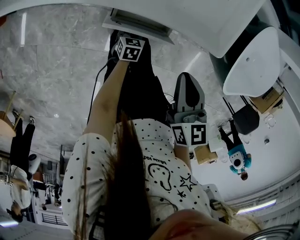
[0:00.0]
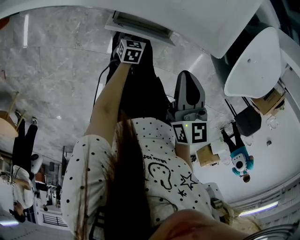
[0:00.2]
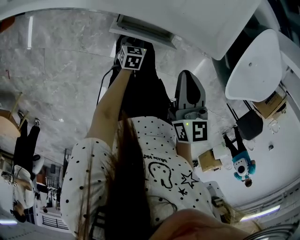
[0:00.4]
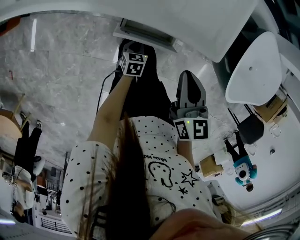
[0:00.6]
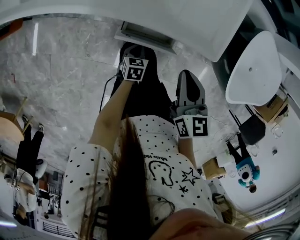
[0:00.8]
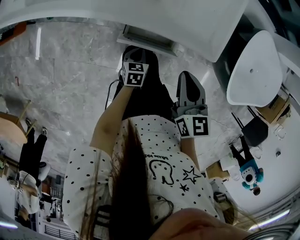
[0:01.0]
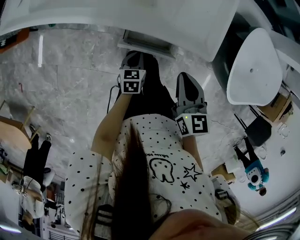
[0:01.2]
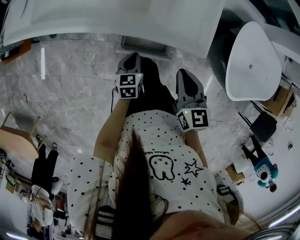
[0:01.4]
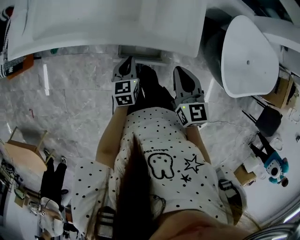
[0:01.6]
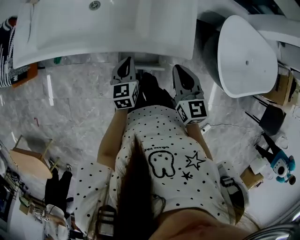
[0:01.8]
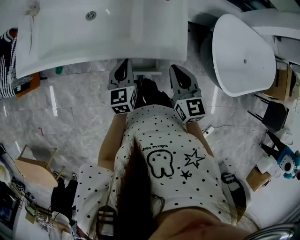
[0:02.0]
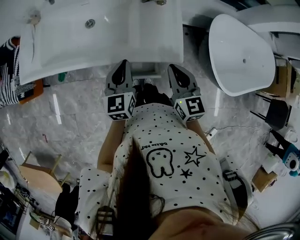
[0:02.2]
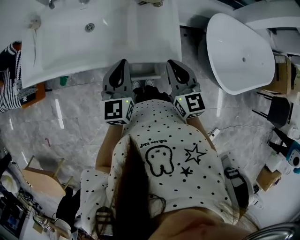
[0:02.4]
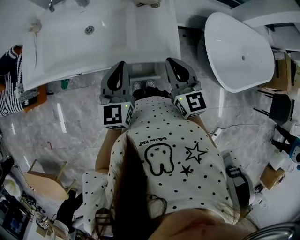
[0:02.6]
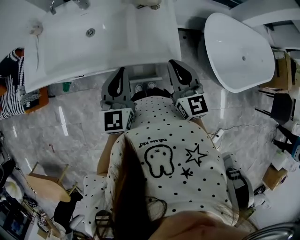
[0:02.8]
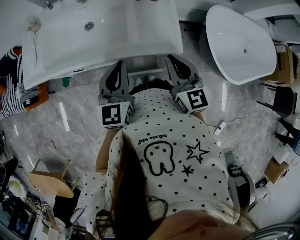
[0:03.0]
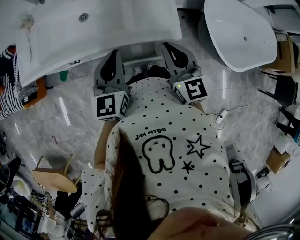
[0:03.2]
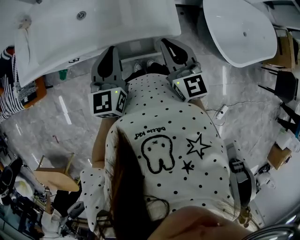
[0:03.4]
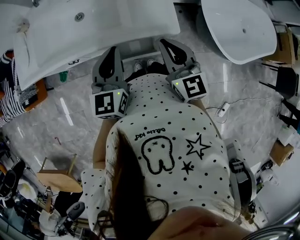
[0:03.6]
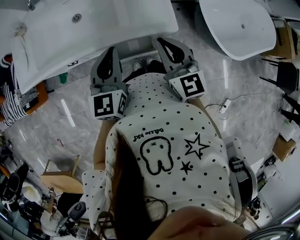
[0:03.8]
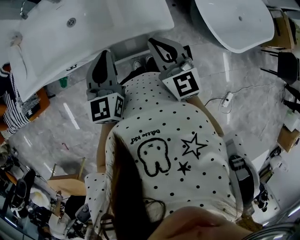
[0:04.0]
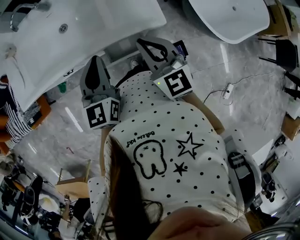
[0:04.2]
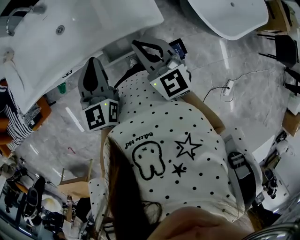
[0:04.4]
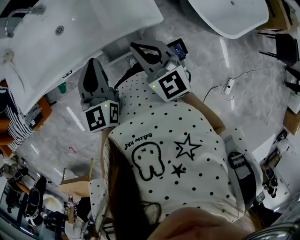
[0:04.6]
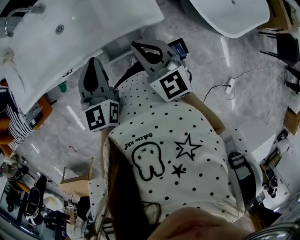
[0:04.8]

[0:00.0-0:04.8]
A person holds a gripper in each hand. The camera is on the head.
0:00.0 to 0:01.6: The left gripper is displaced upward by approximately 30 cm, swivels roughly 20 degrees, and closes up, while the right gripper goes approximately 10 cm upward.
0:01.6 to 0:03.2: The left gripper travels upward by about 25 cm, and changes its angle by roughly 30 degrees. Meanwhile the right gripper heads upward, covering roughly 10 cm.
0:03.2 to 0:04.8: The grippers stay close to where they were, moving slightly.

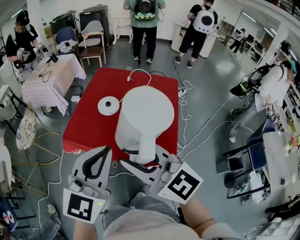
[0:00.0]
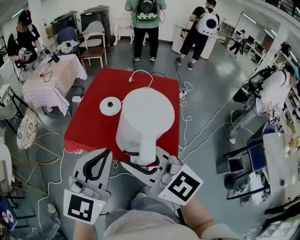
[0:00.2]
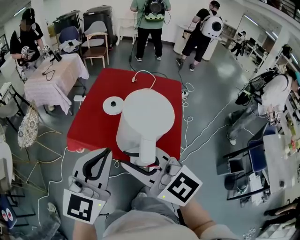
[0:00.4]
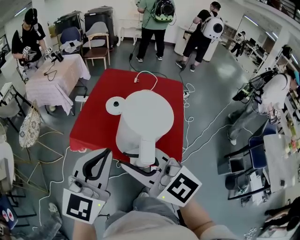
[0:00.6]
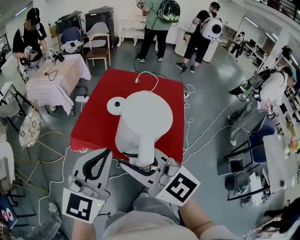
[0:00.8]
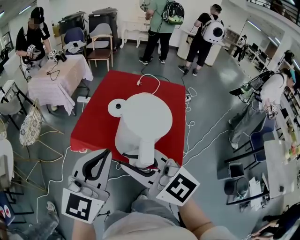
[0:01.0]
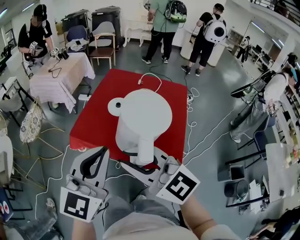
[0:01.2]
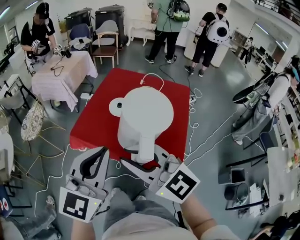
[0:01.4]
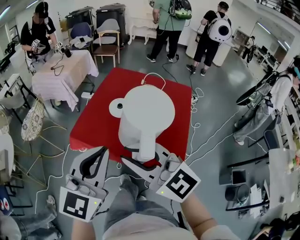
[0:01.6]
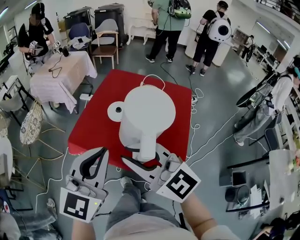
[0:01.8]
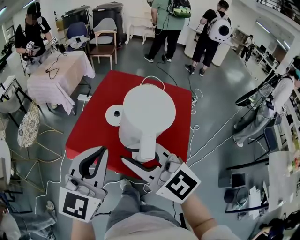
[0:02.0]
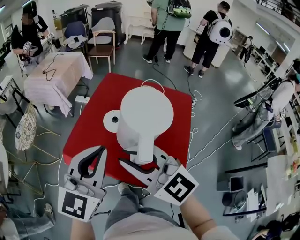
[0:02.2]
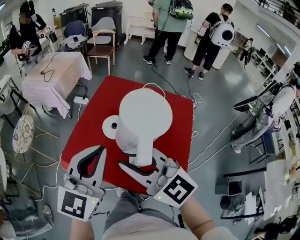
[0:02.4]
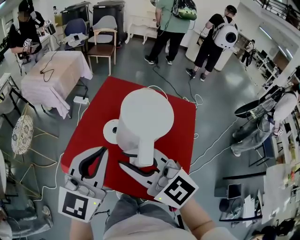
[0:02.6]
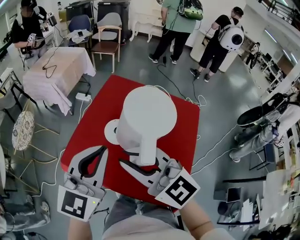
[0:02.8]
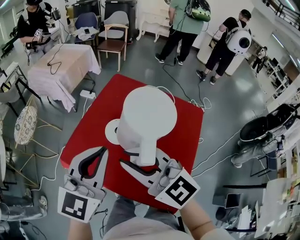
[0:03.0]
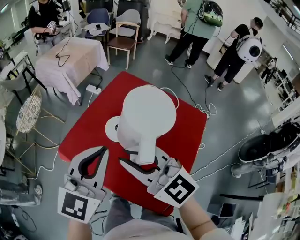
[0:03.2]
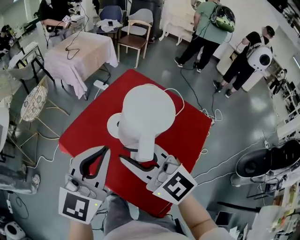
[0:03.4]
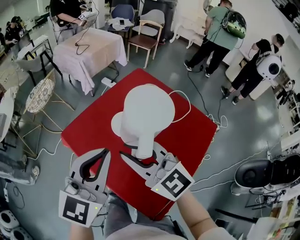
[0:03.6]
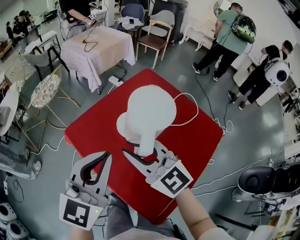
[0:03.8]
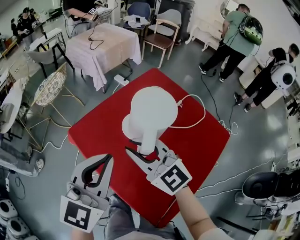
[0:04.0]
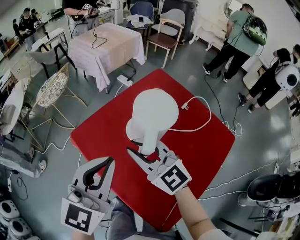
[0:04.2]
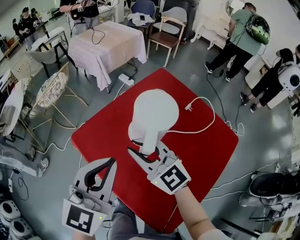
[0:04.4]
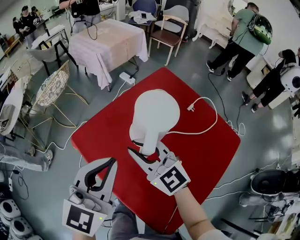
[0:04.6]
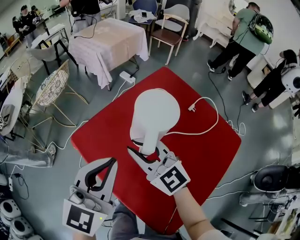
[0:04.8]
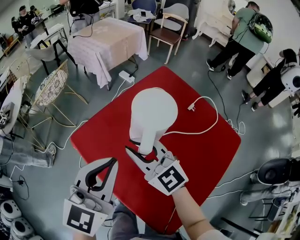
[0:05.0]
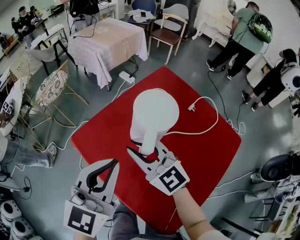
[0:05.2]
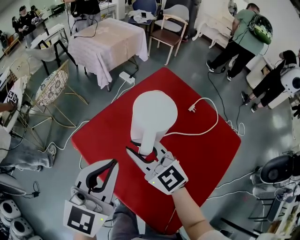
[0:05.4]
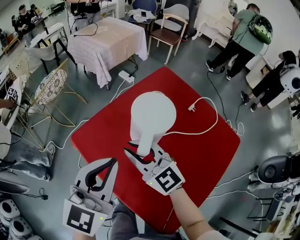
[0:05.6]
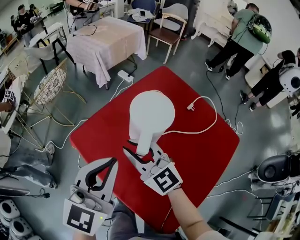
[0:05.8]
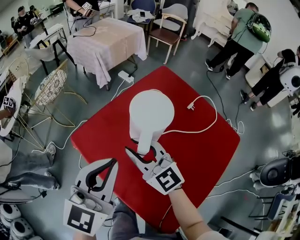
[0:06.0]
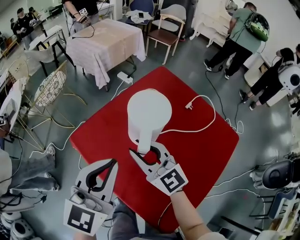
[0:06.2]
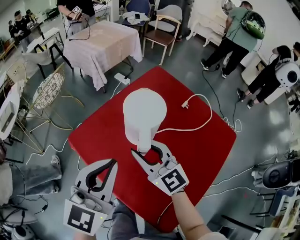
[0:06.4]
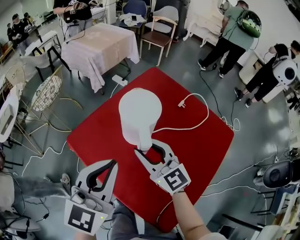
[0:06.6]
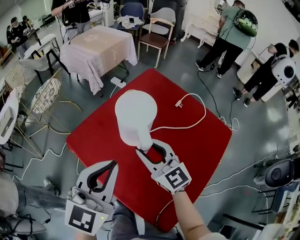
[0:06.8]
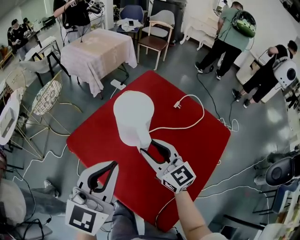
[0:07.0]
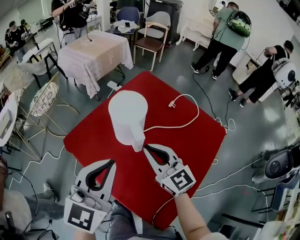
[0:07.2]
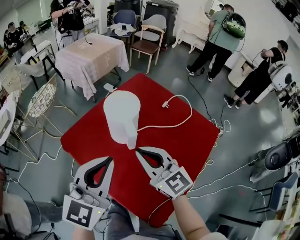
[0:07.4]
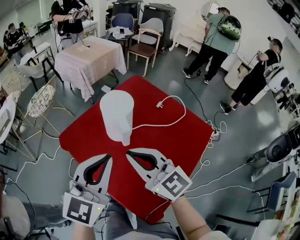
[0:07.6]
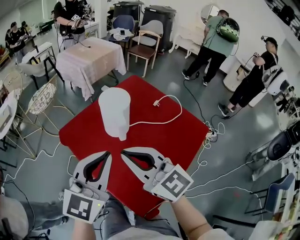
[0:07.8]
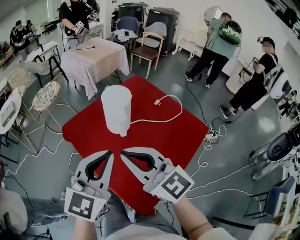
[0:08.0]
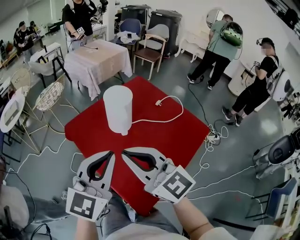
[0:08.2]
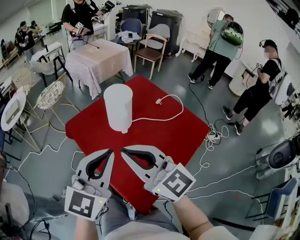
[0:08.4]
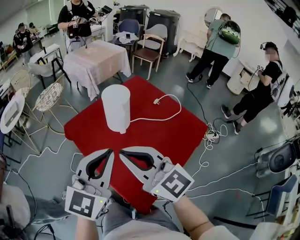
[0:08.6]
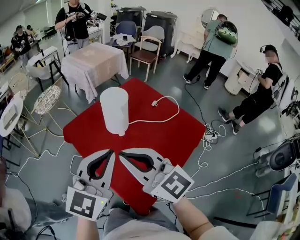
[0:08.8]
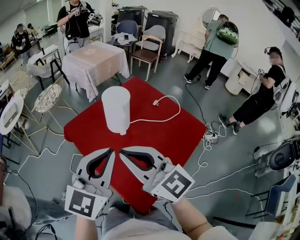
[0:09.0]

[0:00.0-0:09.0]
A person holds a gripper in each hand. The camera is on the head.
0:00.0 to 0:01.6: The grippers stay close to where they were, moving slightly.
0:01.6 to 0:03.0: The grippers both shift forward by approximately 20 cm.
0:03.0 to 0:04.4: The left gripper heads downward, covering approximately 5 cm; the right gripper shifts approximately 15 cm downward and forward.
0:04.4 to 0:06.0: The grippers make only small movements.
0:06.0 to 0:07.6: The right gripper moves backward, upward and to the right, about 20 cm, and opens, then closes once more; the left gripper shifts approximately 10 cm backward and to the right.
0:07.6 to 0:09.0: The right gripper goes roughly 10 cm backward and upward. Meanwhile the left gripper travels backward by about 5 cm.

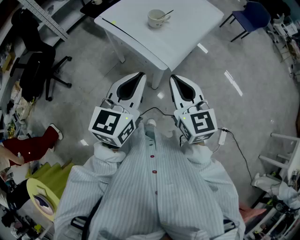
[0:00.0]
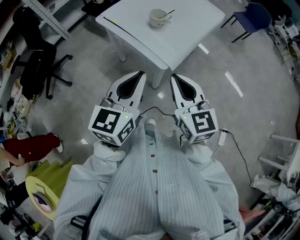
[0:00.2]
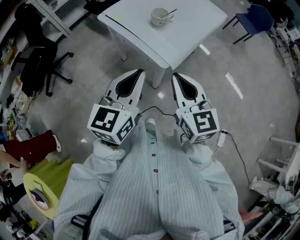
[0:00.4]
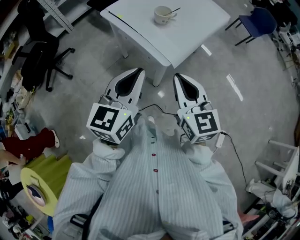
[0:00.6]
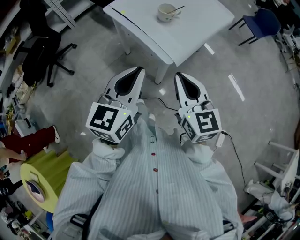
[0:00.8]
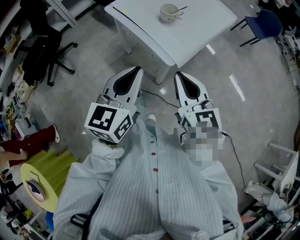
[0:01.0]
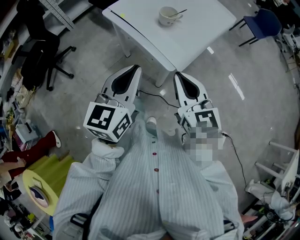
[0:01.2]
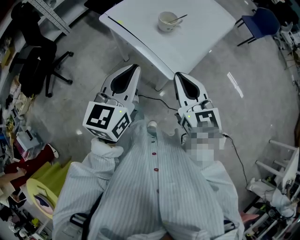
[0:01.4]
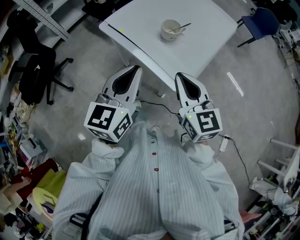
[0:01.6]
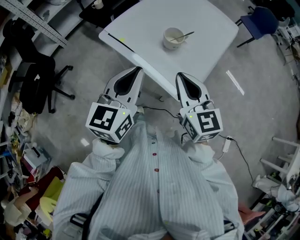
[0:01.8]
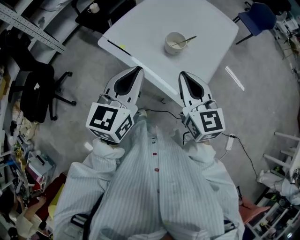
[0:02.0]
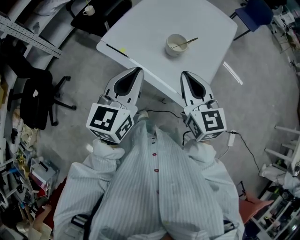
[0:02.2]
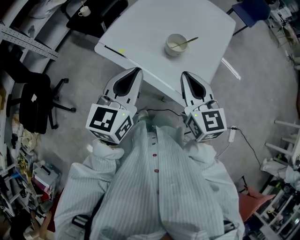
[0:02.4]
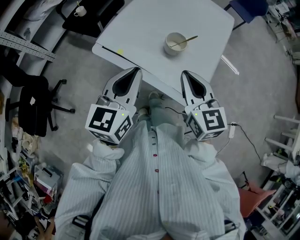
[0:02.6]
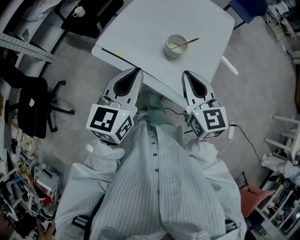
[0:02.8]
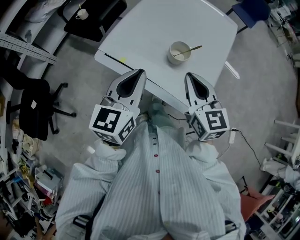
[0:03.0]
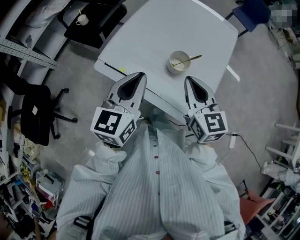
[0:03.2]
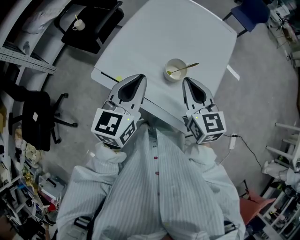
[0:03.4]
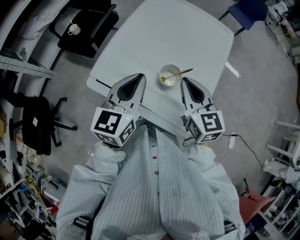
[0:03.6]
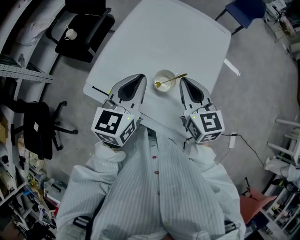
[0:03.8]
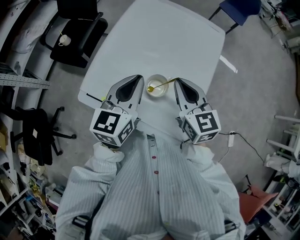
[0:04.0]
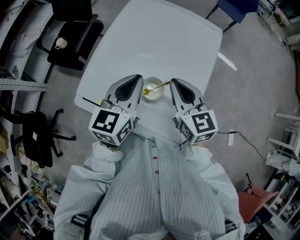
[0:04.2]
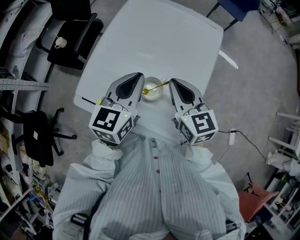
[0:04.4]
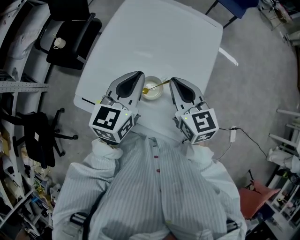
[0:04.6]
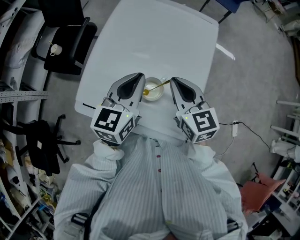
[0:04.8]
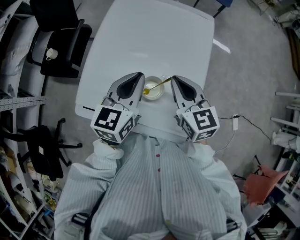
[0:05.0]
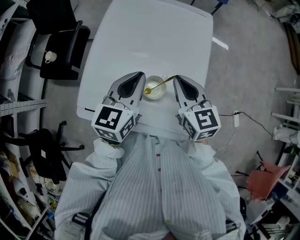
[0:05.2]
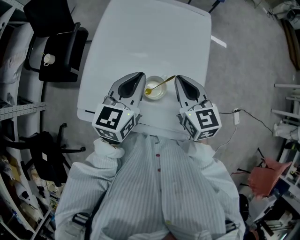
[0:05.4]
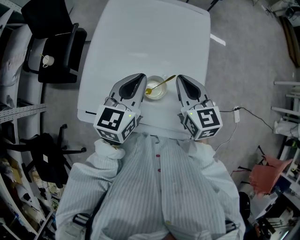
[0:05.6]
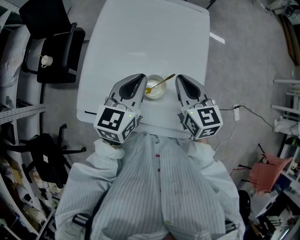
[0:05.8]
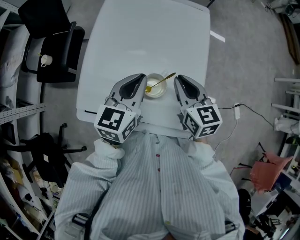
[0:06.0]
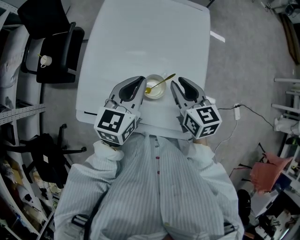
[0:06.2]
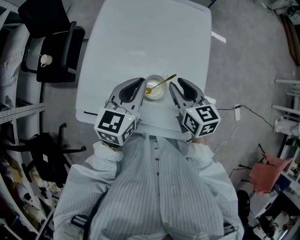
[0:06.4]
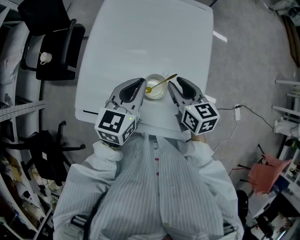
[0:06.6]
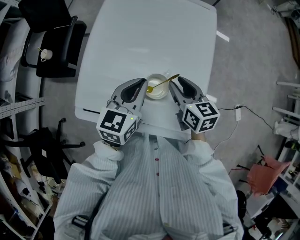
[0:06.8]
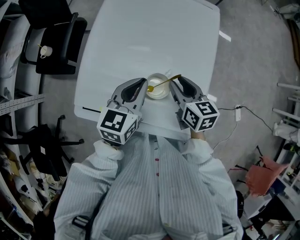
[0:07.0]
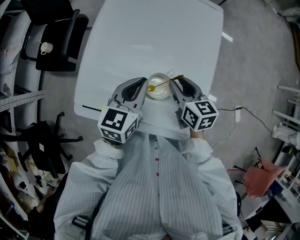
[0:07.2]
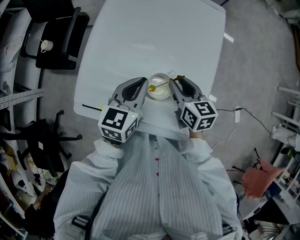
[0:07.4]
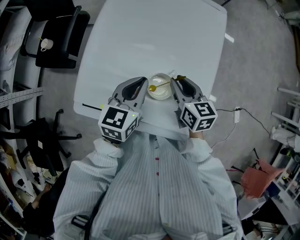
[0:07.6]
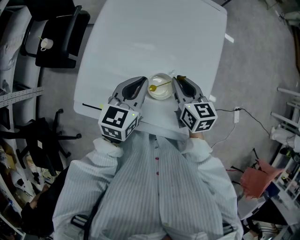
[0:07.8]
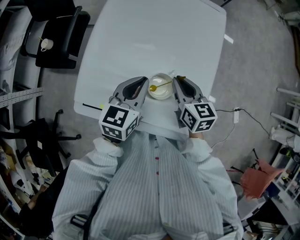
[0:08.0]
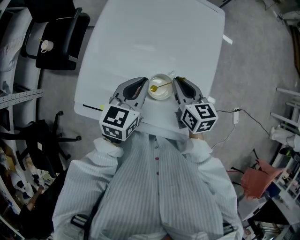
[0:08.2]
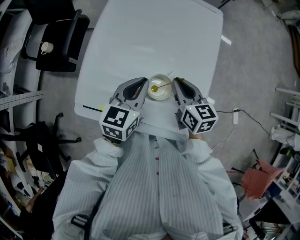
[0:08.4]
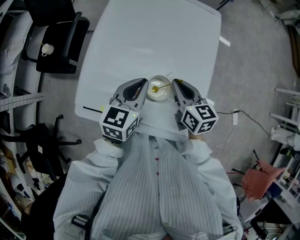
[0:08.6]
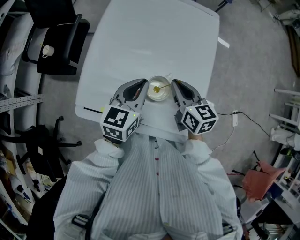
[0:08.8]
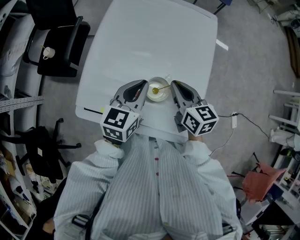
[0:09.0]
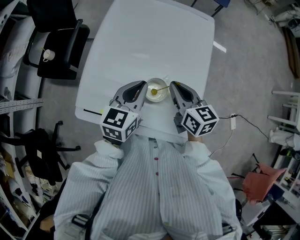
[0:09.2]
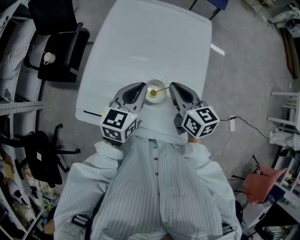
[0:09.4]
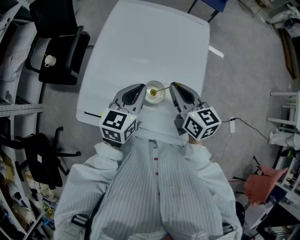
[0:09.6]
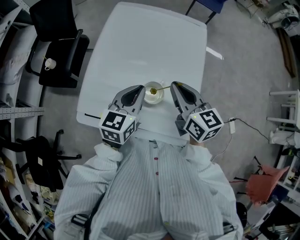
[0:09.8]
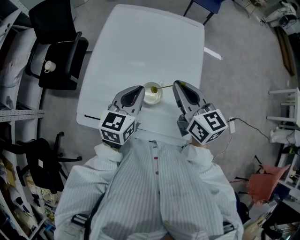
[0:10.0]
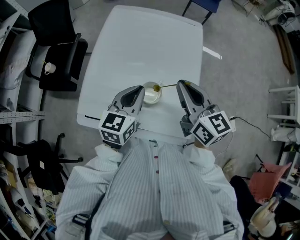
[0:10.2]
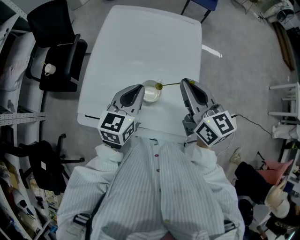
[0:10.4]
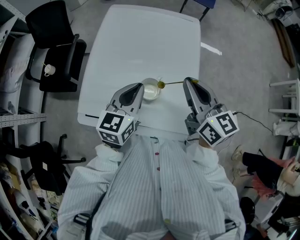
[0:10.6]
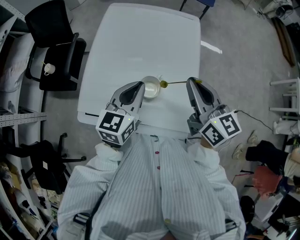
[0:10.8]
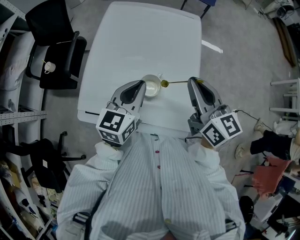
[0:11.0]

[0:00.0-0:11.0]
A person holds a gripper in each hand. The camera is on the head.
0:00.0 to 0:01.6: The right gripper travels forward by some 15 cm. Meanwhile the left gripper is displaced forward and to the left by some 15 cm.
0:01.6 to 0:03.2: Both grippers travel together forward, some 20 cm.
0:03.2 to 0:04.8: The grippers both shift forward and to the right by some 20 cm.
0:04.8 to 0:06.2: The right gripper ends up some 5 cm from where it was.
0:06.2 to 0:07.8: The grippers both shift downward by about 5 cm.
0:07.8 to 0:09.4: The right gripper moves upward, some 10 cm.
0:09.4 to 0:11.0: The left gripper goes some 5 cm upward. Meanwhile the right gripper moves upward and to the right, some 15 cm.
